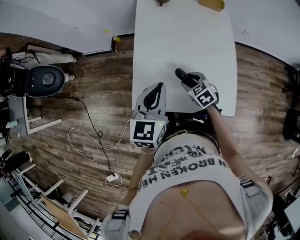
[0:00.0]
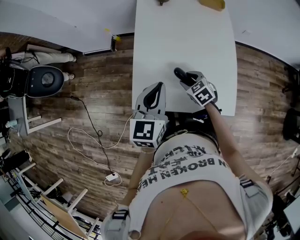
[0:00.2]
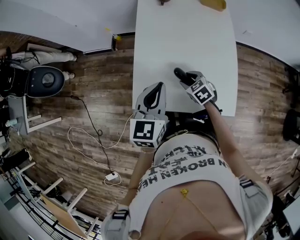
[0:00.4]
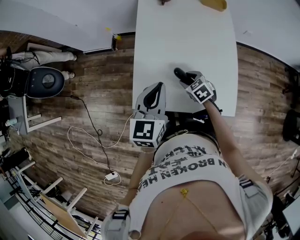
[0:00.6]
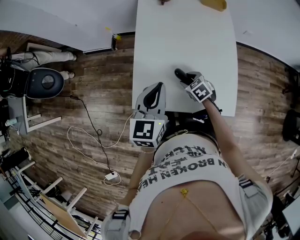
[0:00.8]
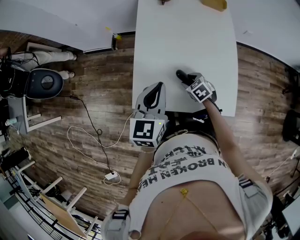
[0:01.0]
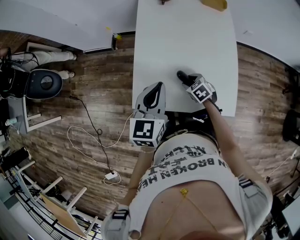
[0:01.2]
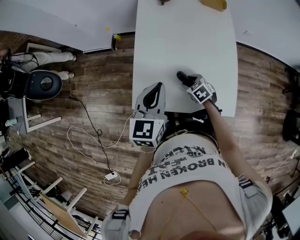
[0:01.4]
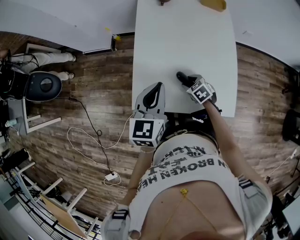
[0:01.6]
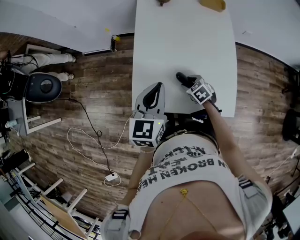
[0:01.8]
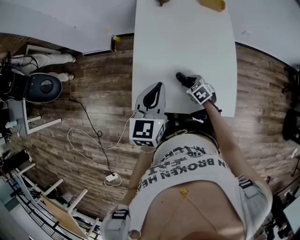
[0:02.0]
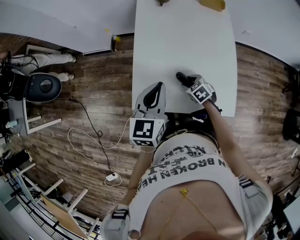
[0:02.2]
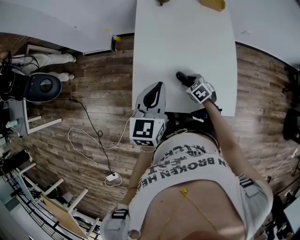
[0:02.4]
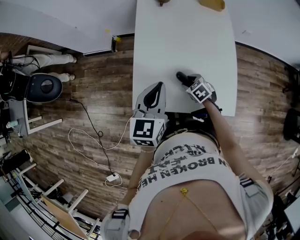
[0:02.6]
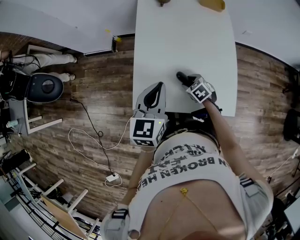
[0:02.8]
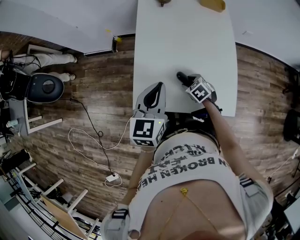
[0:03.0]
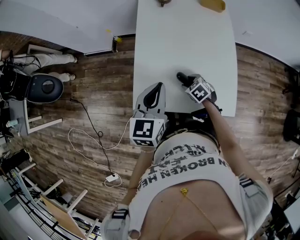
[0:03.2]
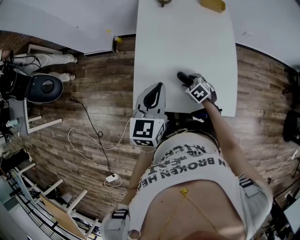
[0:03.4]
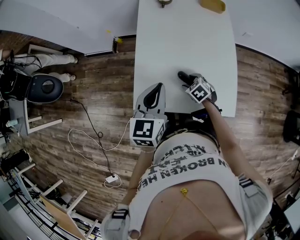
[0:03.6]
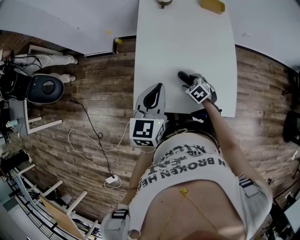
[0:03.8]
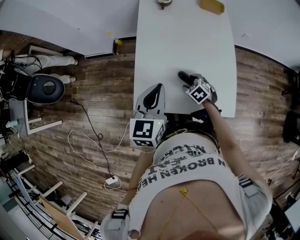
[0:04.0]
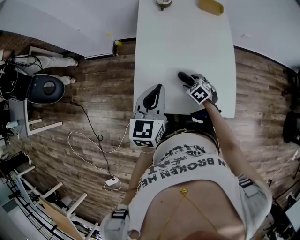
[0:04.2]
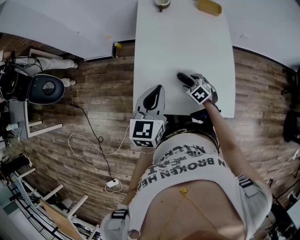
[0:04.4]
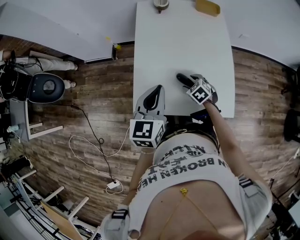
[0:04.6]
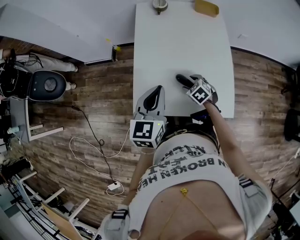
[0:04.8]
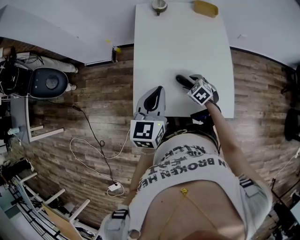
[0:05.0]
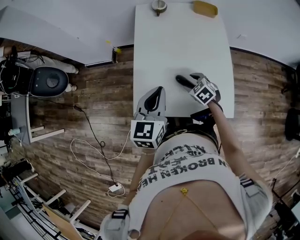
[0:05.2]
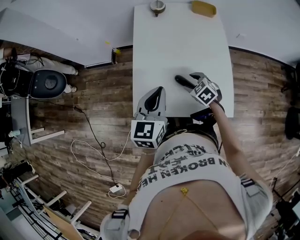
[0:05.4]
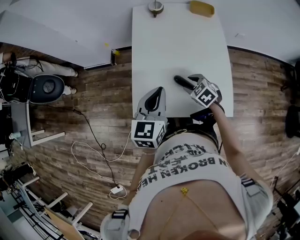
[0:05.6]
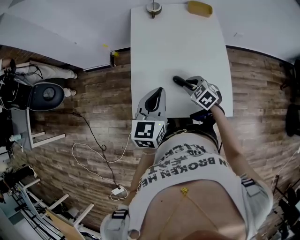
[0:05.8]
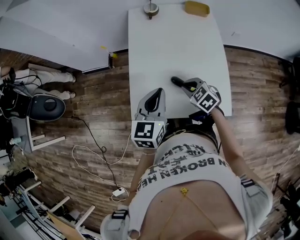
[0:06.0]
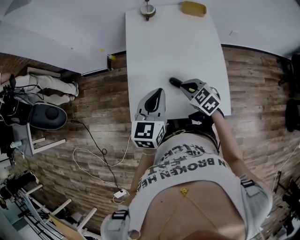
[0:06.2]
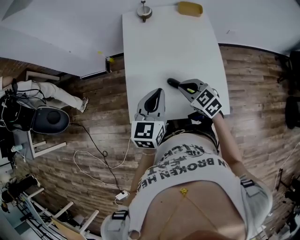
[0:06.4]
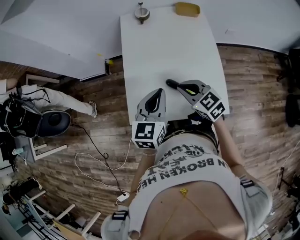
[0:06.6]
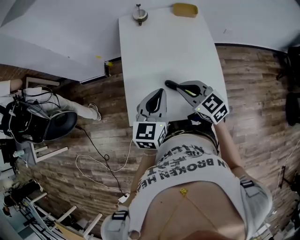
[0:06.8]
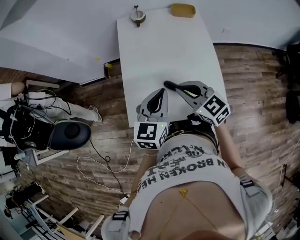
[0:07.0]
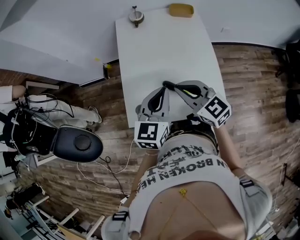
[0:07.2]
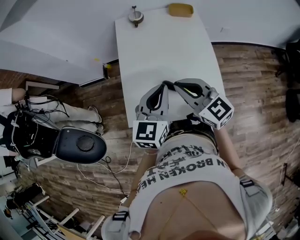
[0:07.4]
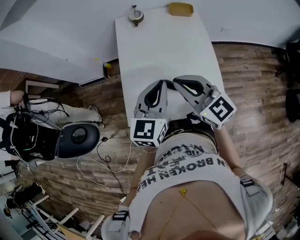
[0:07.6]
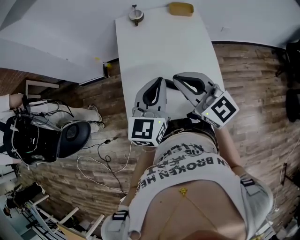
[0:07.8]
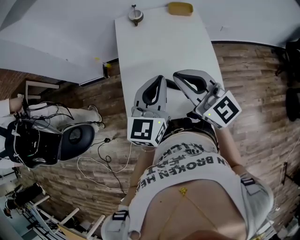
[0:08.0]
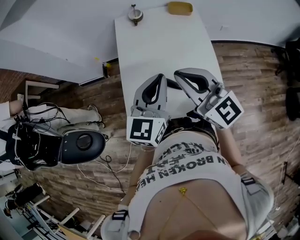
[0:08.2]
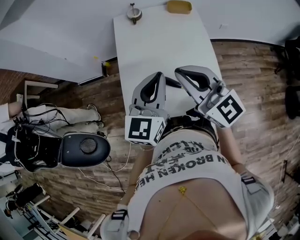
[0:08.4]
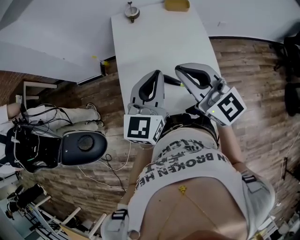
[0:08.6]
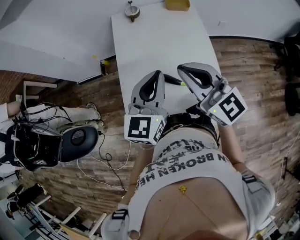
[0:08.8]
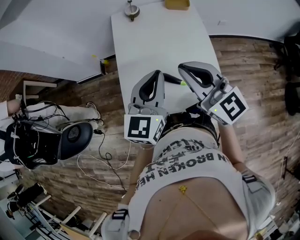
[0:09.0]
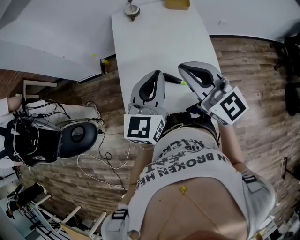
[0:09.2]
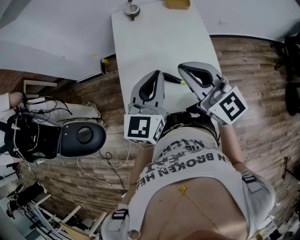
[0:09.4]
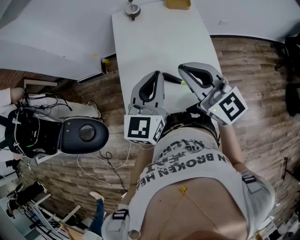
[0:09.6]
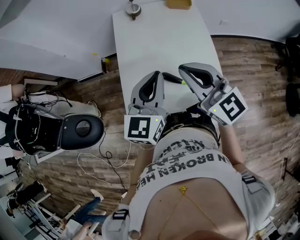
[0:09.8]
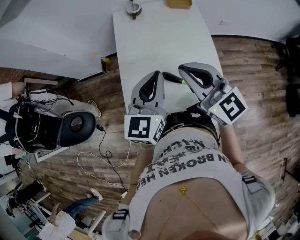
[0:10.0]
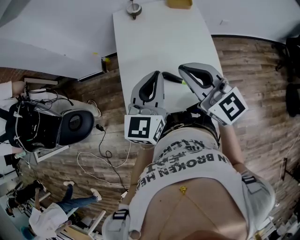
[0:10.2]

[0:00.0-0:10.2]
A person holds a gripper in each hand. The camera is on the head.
0:00.0 to 0:01.4: The right gripper travels downward by roughly 5 cm.
0:01.4 to 0:03.0: Neither gripper changes place.
0:03.0 to 0:04.4: The grippers move only a little.
0:04.4 to 0:05.8: The right gripper travels upward by some 10 cm, and closes its fingers.
0:05.8 to 0:07.2: The left gripper shifts about 5 cm to the right, while the right gripper travels upward by approximately 20 cm, and points its fingers roughly 40 degrees further upward.
0:07.2 to 0:08.8: The left gripper shifts approximately 5 cm upward; the right gripper moves upward, roughly 10 cm, and changes its angle by approximately 20 degrees.
0:08.8 to 0:10.2: The grippers make only small movements.

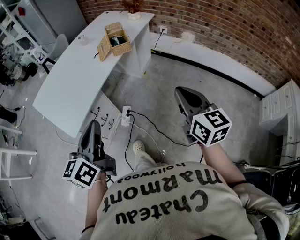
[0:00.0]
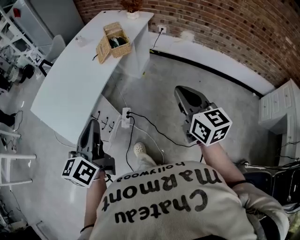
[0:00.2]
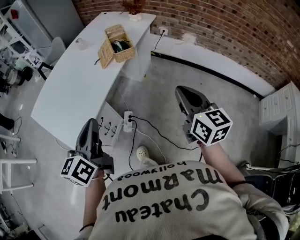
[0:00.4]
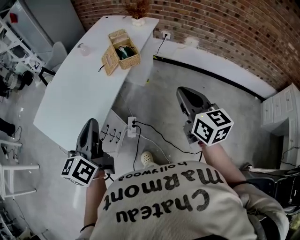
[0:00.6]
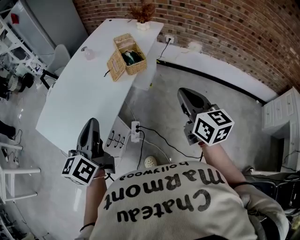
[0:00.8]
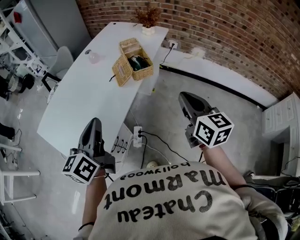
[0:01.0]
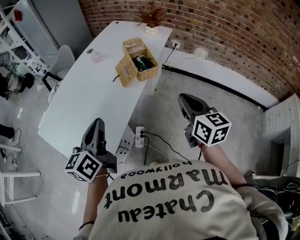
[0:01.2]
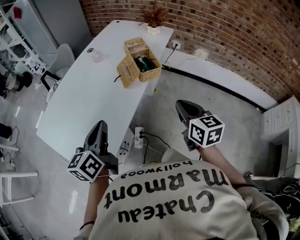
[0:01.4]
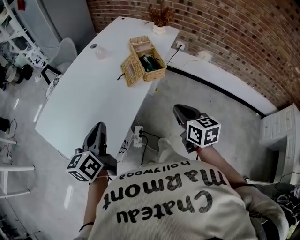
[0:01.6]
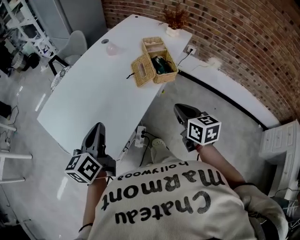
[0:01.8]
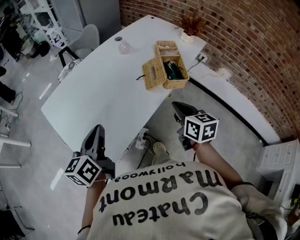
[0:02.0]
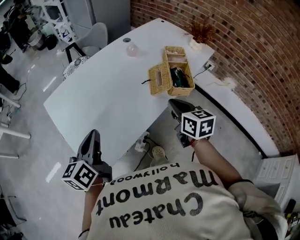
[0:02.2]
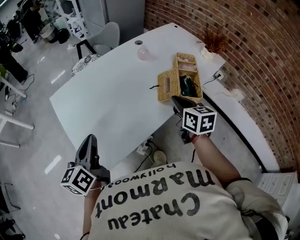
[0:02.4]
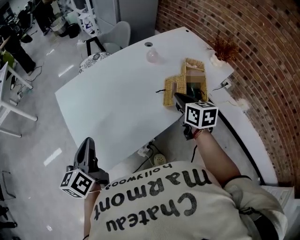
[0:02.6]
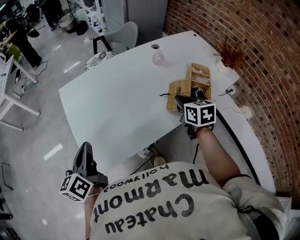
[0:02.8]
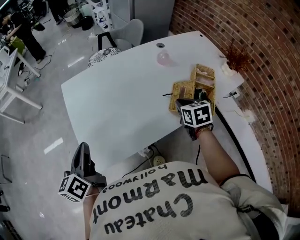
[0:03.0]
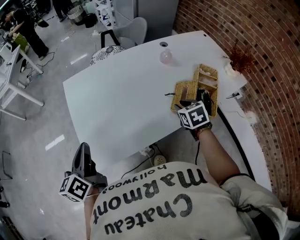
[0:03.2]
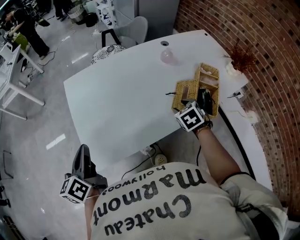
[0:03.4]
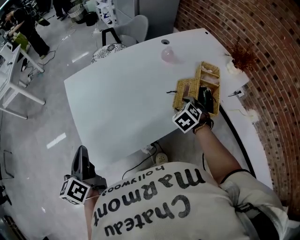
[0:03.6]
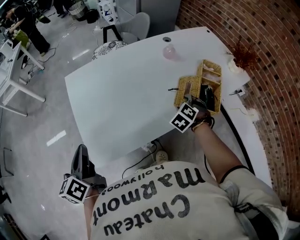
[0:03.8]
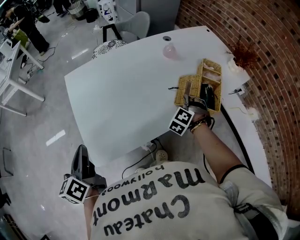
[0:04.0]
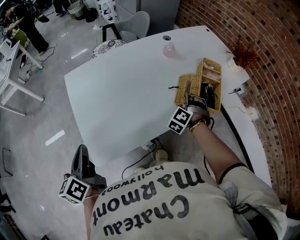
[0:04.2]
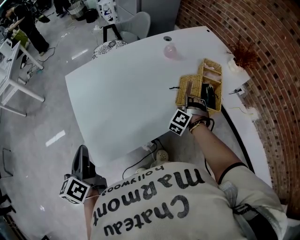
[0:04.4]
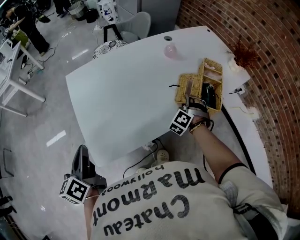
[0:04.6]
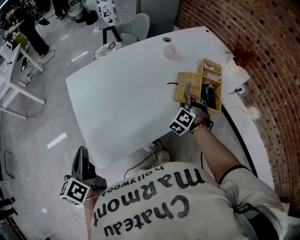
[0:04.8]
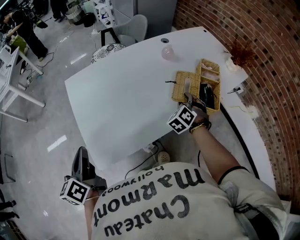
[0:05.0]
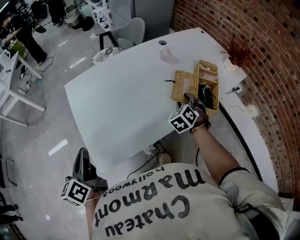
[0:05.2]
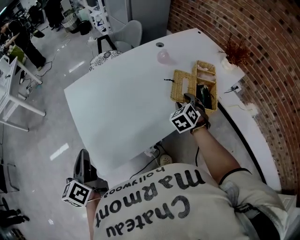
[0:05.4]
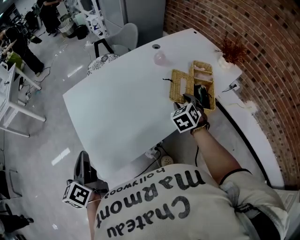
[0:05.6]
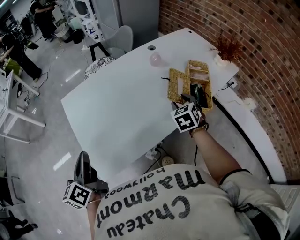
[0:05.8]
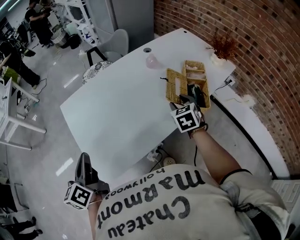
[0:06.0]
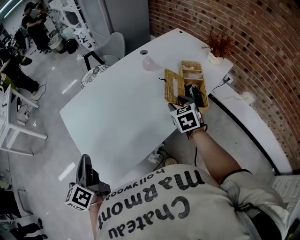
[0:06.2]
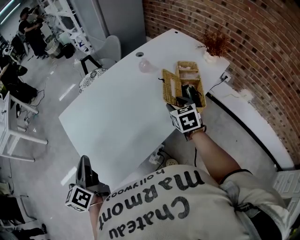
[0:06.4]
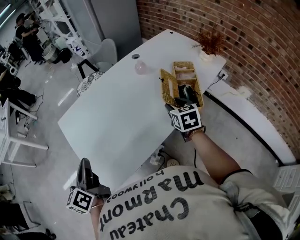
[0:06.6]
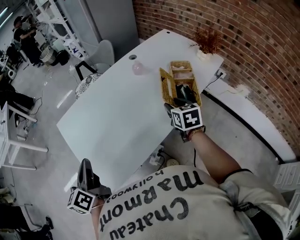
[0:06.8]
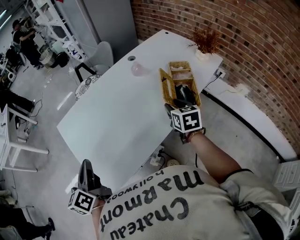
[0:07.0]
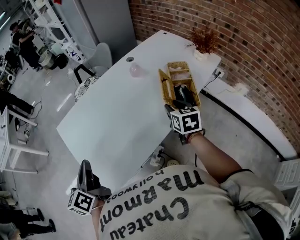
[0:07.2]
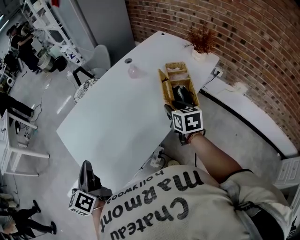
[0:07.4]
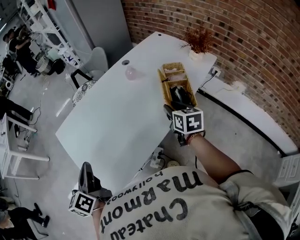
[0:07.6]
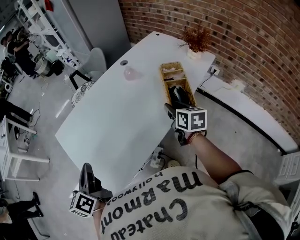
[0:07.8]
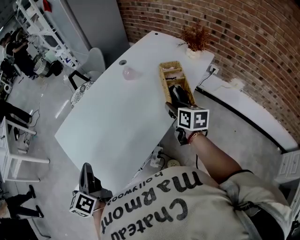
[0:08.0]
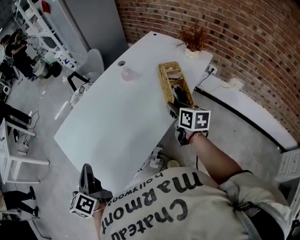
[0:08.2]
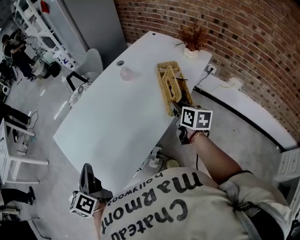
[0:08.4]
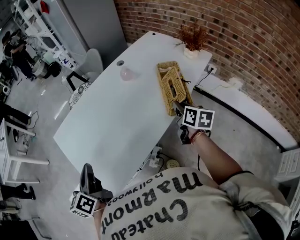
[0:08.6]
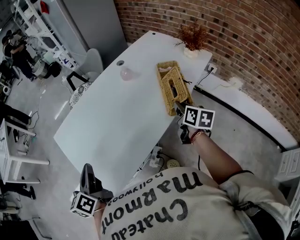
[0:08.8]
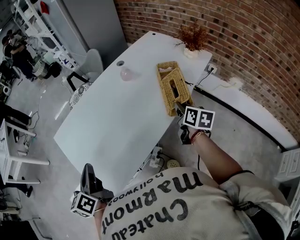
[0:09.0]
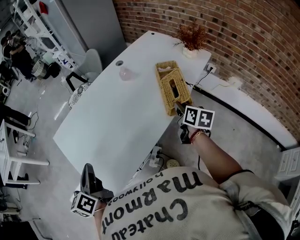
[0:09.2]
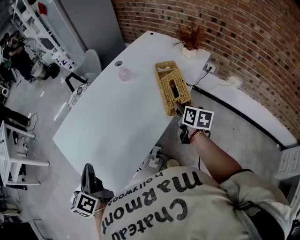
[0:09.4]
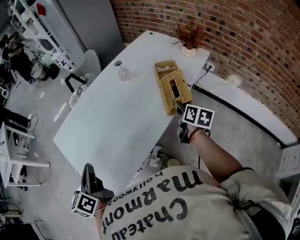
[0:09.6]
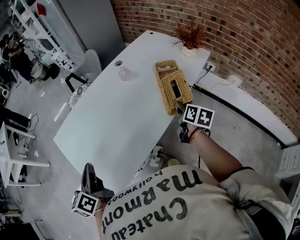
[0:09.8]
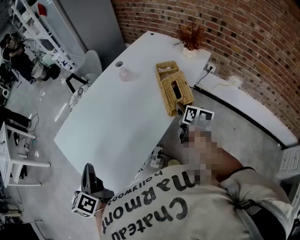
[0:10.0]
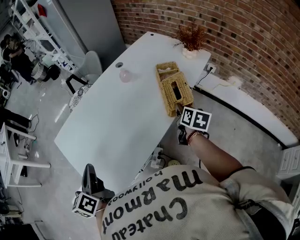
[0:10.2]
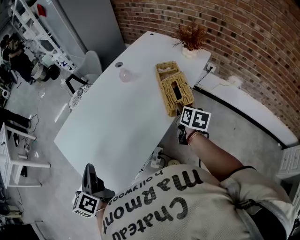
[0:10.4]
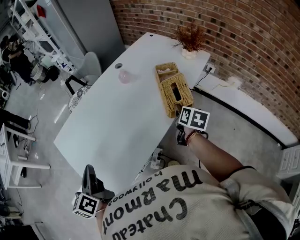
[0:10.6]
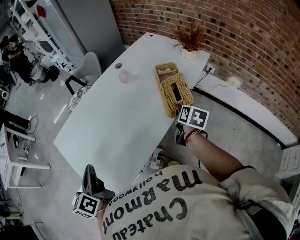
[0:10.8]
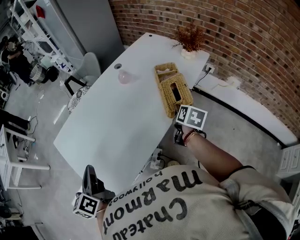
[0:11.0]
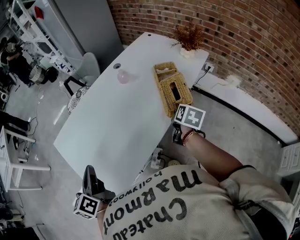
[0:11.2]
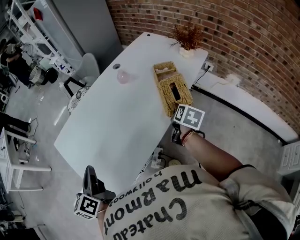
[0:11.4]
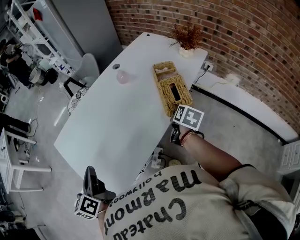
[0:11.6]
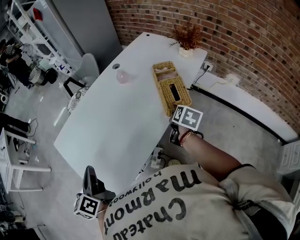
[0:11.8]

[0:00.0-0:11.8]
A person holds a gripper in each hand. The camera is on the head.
0:00.0 to 0:01.4: Both grippers move forward and to the left, roughly 30 cm.
0:01.4 to 0:03.0: The left gripper shifts by some 15 cm, and changes its angle by approximately 50 degrees. Meanwhile the right gripper moves about 30 cm, and changes its angle by roughly 50 degrees.
0:03.0 to 0:04.4: The left gripper moves about 5 cm. Meanwhile the right gripper shifts approximately 10 cm downward, rolls counterclockwise, seen from behind, by some 70 degrees, and opens its fingers.
0:04.4 to 0:06.0: The right gripper moves upward, approximately 10 cm, and rolls clockwise, seen from behind, by about 60 degrees, while the left gripper shifts approximately 5 cm forward.
0:06.0 to 0:07.4: The right gripper changes place by some 5 cm, and rotates approximately 30 degrees. The left gripper changes place by approximately 5 cm.
0:07.4 to 0:08.8: The right gripper goes roughly 10 cm to the right, changes its angle by approximately 20 degrees, and closes its fingers.
0:08.8 to 0:10.4: The grippers make only small movements.
0:10.4 to 0:11.8: The grippers stay close to where they were, moving slightly.

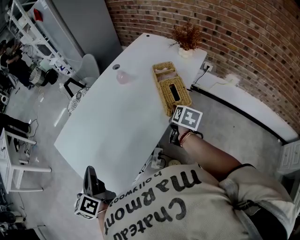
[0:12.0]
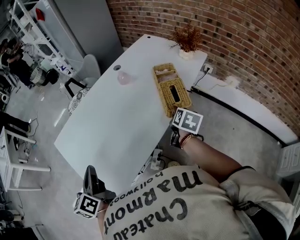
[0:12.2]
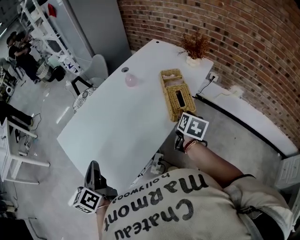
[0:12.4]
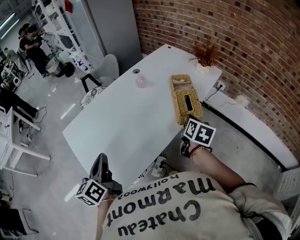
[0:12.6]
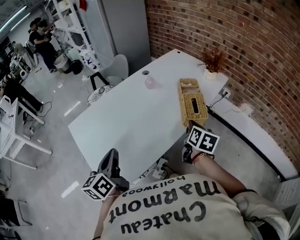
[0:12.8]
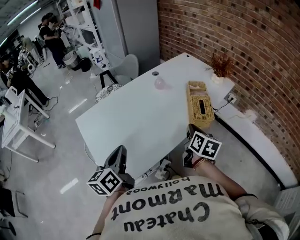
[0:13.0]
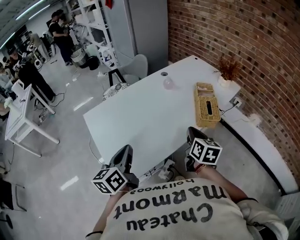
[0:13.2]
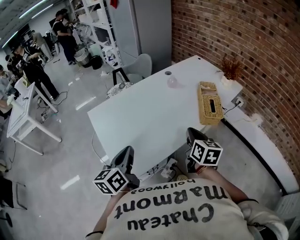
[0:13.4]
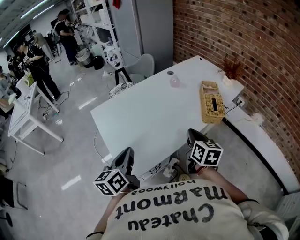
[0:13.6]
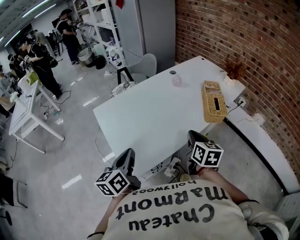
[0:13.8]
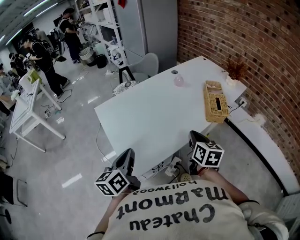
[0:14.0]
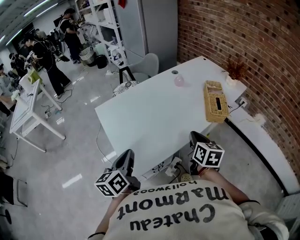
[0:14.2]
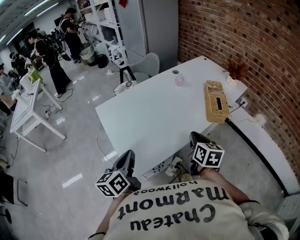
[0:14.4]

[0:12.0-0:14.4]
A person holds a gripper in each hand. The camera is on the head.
0:12.0 to 0:13.2: The right gripper is displaced to the left, backward and upward by about 20 cm, swivels roughly 40 degrees, and closes up. Meanwhile the left gripper moves some 5 cm.
0:13.2 to 0:14.4: The right gripper moves to the left and backward, roughly 10 cm. Meanwhile the left gripper travels backward and to the left by approximately 10 cm.
